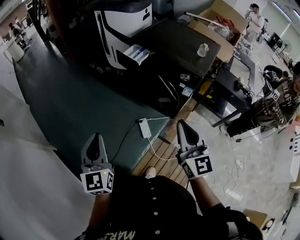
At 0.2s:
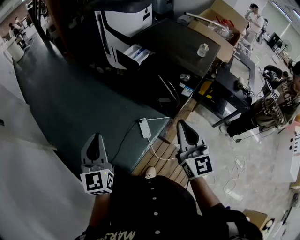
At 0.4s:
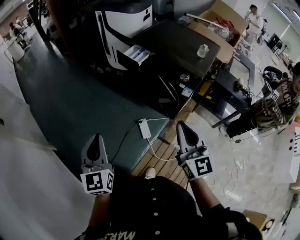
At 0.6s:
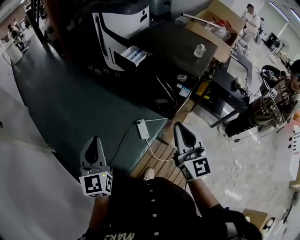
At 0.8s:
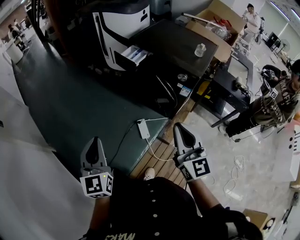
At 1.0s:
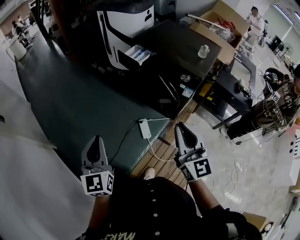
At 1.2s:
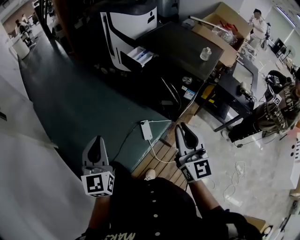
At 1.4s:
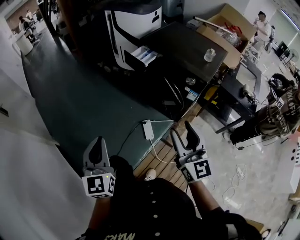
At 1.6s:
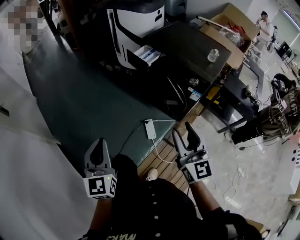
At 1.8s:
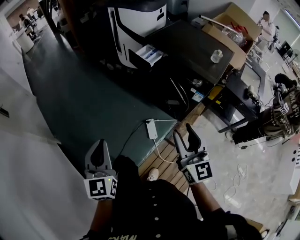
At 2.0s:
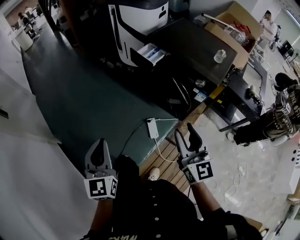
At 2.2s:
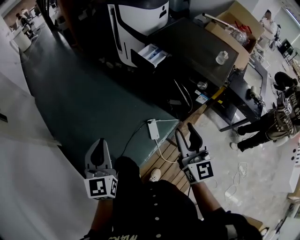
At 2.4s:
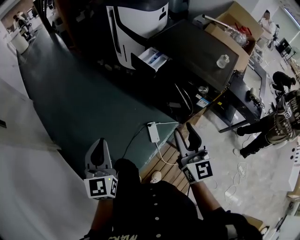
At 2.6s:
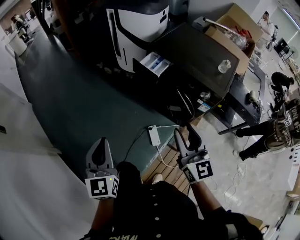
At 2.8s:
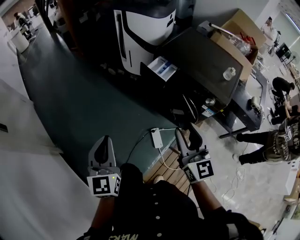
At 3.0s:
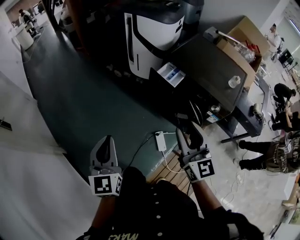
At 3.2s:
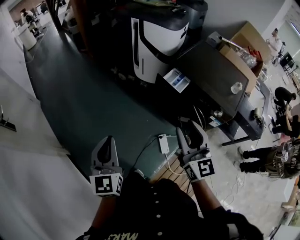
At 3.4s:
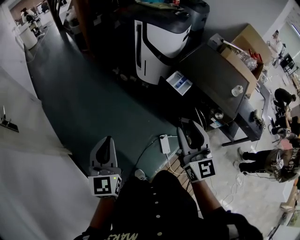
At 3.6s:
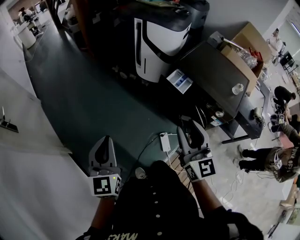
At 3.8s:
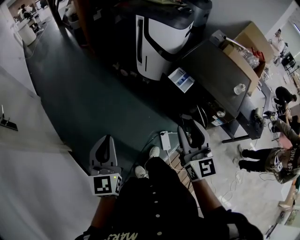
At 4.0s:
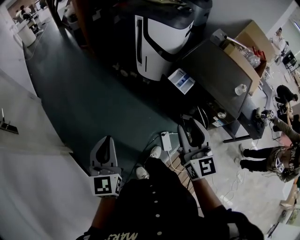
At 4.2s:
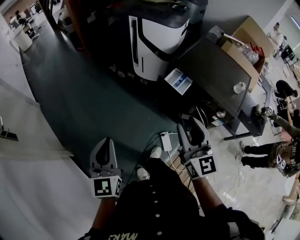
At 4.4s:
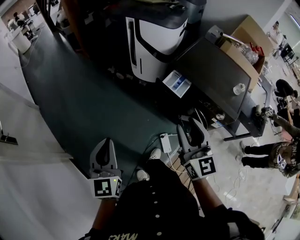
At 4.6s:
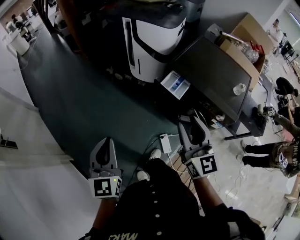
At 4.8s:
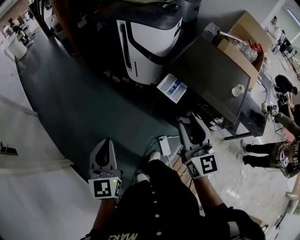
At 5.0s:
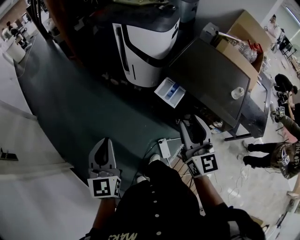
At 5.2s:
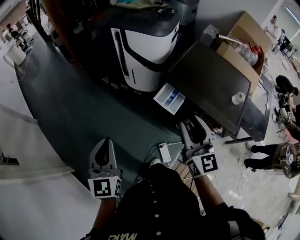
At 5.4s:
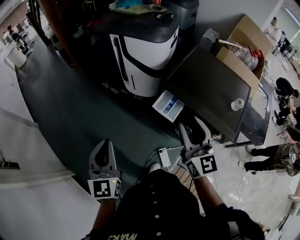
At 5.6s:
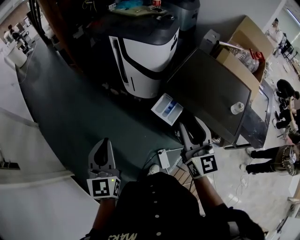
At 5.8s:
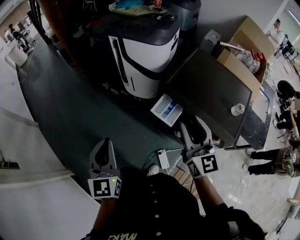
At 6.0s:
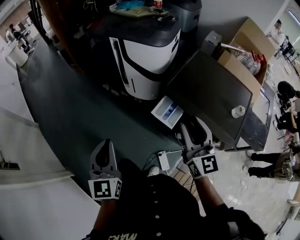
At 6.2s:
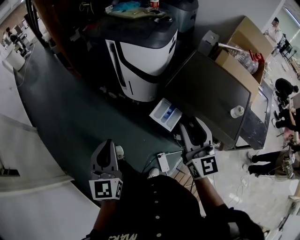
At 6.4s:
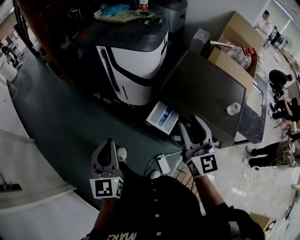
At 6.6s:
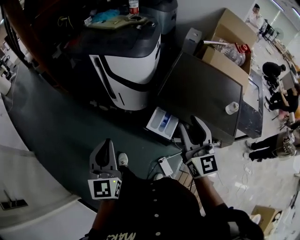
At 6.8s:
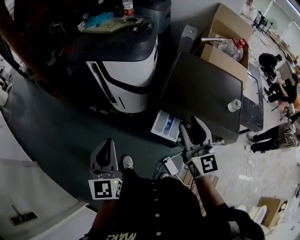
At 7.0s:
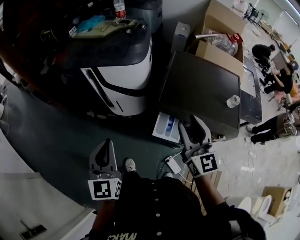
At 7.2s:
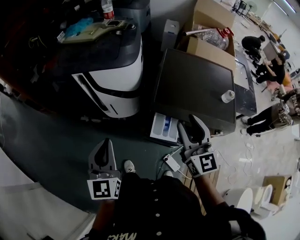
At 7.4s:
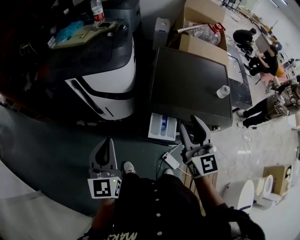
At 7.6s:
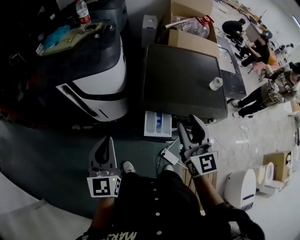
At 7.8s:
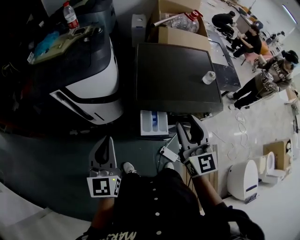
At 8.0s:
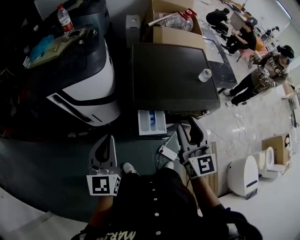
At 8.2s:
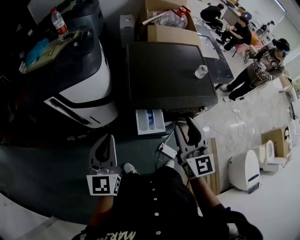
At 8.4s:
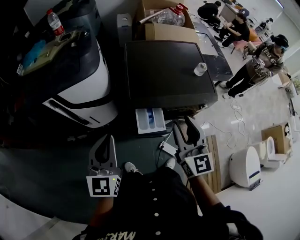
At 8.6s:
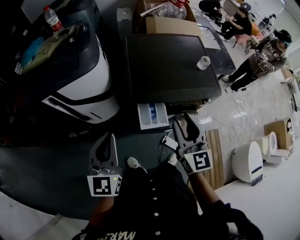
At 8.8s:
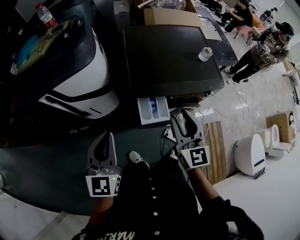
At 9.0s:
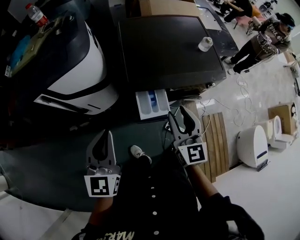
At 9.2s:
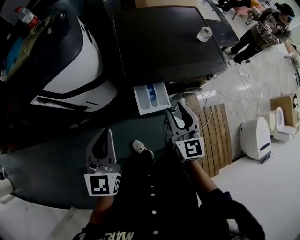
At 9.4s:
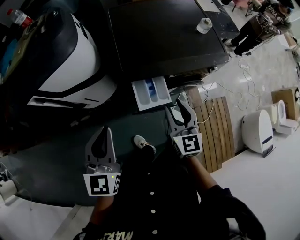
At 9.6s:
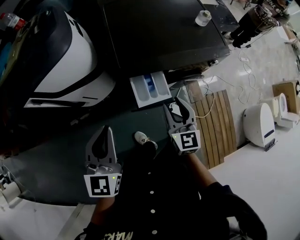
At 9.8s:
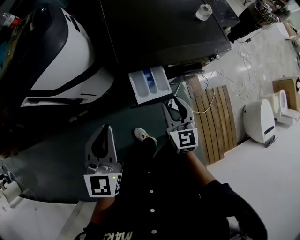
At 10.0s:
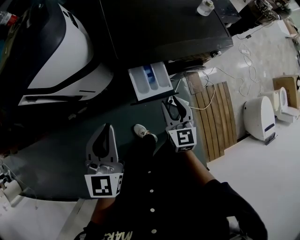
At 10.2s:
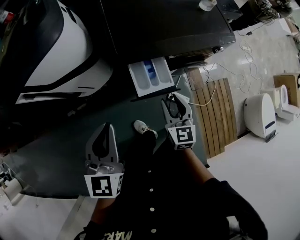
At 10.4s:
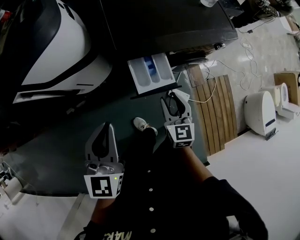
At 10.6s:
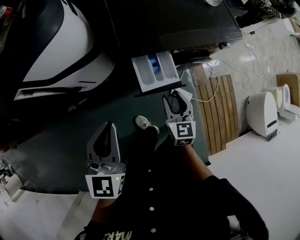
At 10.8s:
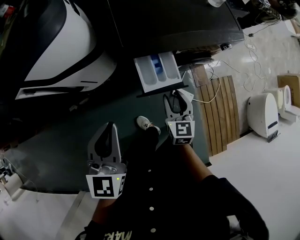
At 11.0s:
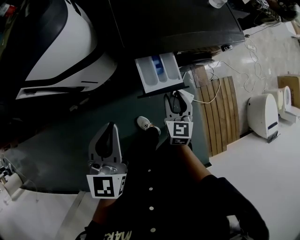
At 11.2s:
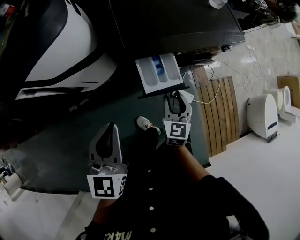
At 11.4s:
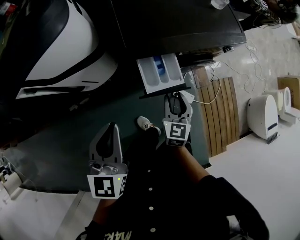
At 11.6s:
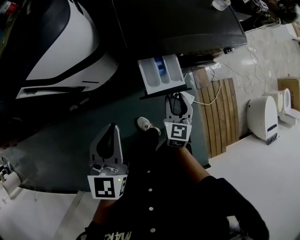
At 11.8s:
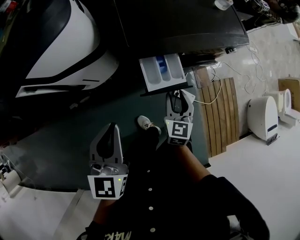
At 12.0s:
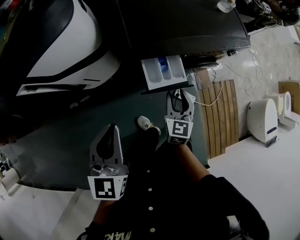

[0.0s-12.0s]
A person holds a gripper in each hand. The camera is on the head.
0.0s to 1.6s: The right gripper opens up.
1.6s to 3.0s: Both grippers move forward and to the left, roughly 20 cm.
3.0s to 4.4s: The grippers both shift forward by roughly 10 cm.
4.4s to 6.0s: The grippers both shift forward and to the right by approximately 20 cm.
6.0s to 7.6s: The left gripper ends up roughly 25 cm from where it was, and swivels approximately 40 degrees. The right gripper moves approximately 5 cm, and swivels about 30 degrees.
7.6s to 9.0s: The right gripper moves downward, roughly 10 cm.
9.0s to 10.4s: The left gripper goes approximately 5 cm downward. Meanwhile the right gripper moves downward, roughly 20 cm, and swivels roughly 20 degrees.
10.4s to 12.0s: The grippers make only small movements.

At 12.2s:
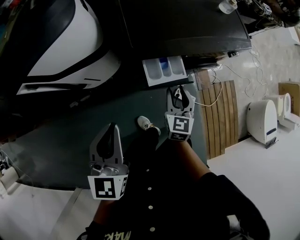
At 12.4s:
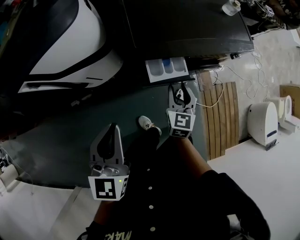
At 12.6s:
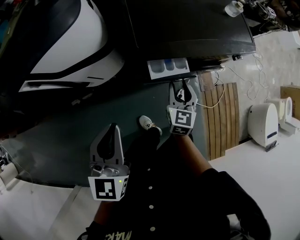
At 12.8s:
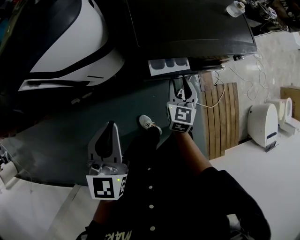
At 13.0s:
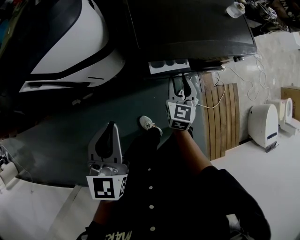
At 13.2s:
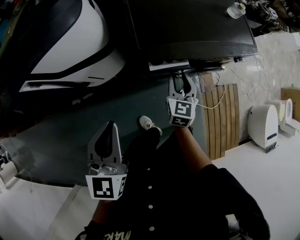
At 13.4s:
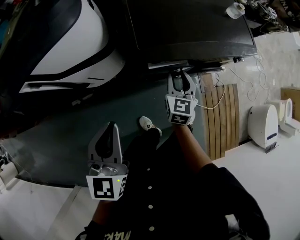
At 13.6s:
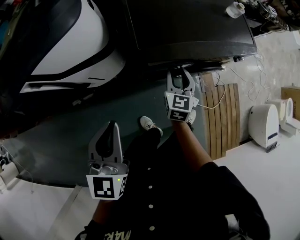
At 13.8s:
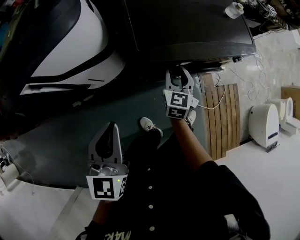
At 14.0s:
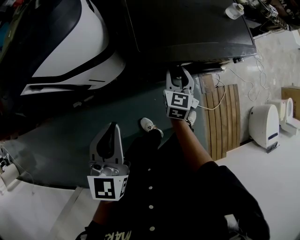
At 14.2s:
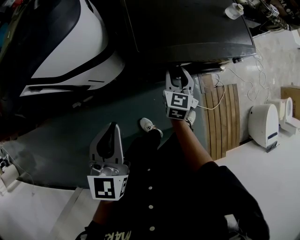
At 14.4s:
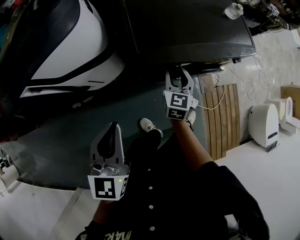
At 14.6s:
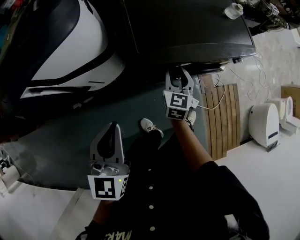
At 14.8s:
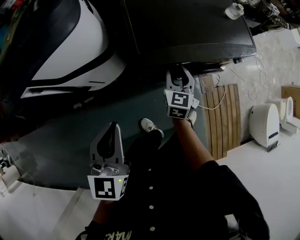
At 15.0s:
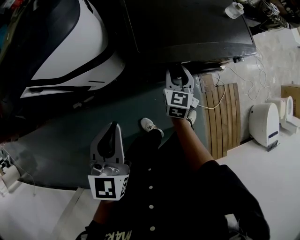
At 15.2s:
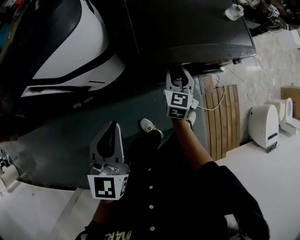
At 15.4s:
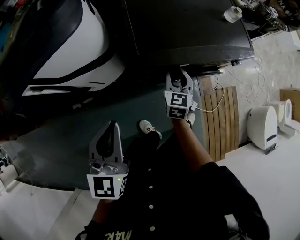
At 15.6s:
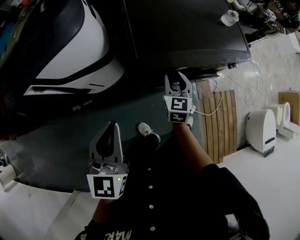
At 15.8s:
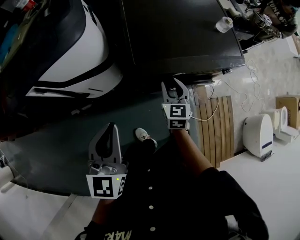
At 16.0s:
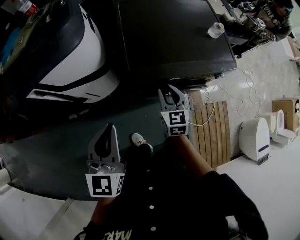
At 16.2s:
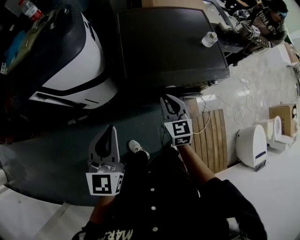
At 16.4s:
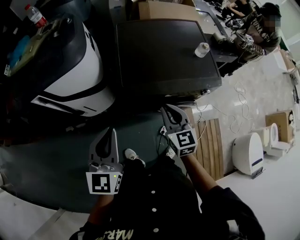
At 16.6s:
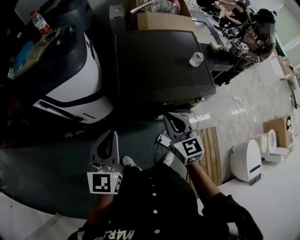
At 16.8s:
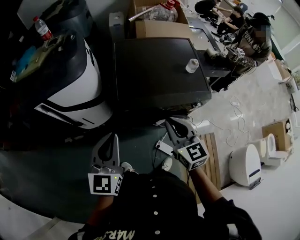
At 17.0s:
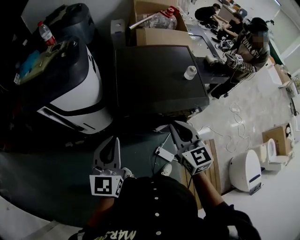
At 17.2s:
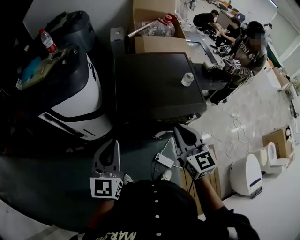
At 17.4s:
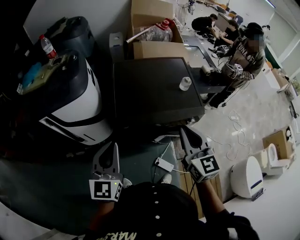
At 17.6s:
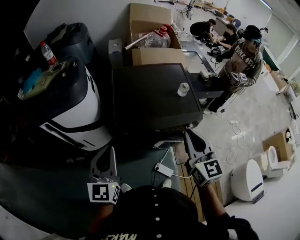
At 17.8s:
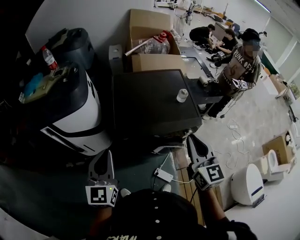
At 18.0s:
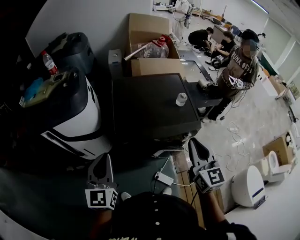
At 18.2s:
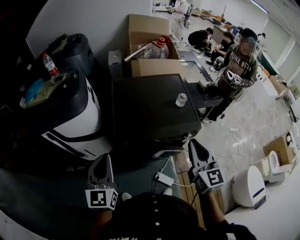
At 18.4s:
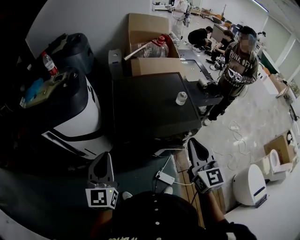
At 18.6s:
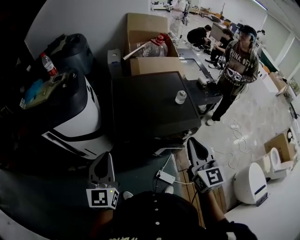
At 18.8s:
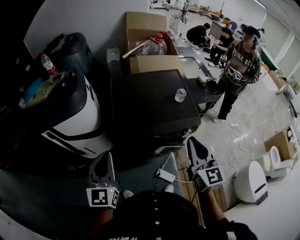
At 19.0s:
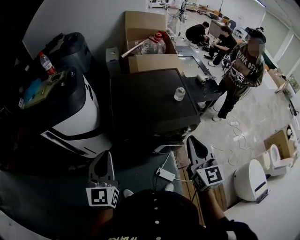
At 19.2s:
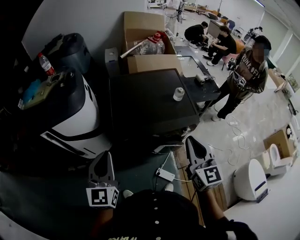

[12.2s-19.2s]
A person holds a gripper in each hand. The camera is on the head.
12.2s to 13.6s: The right gripper heads forward, covering about 10 cm.
13.6s to 15.0s: There are only small adjustments of the grippers.
15.0s to 16.4s: The right gripper moves upward and backward, roughly 15 cm, turns by approximately 30 degrees, and closes its fingers, while the left gripper moves upward and to the right, some 10 cm.
16.4s to 17.8s: The left gripper is displaced upward by roughly 5 cm. The right gripper heads upward and to the right, covering roughly 25 cm.
17.8s to 19.2s: The grippers make only small movements.

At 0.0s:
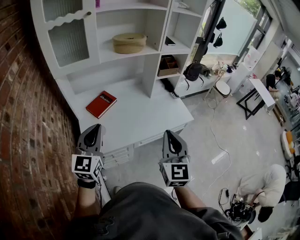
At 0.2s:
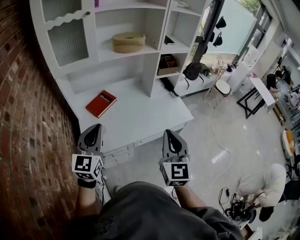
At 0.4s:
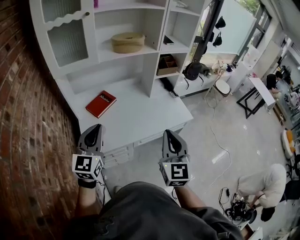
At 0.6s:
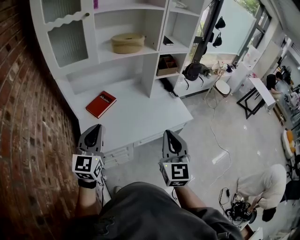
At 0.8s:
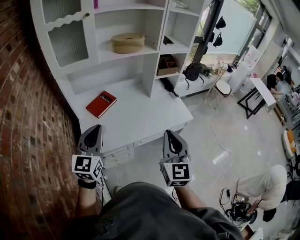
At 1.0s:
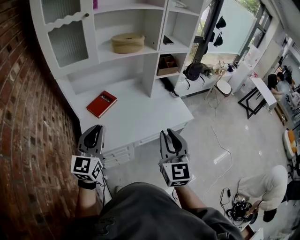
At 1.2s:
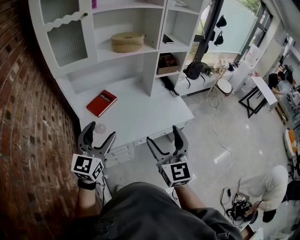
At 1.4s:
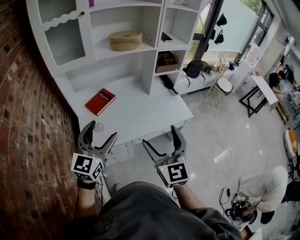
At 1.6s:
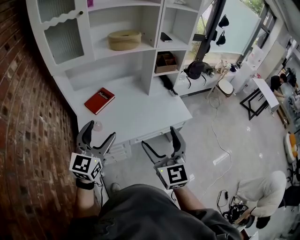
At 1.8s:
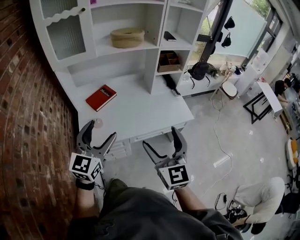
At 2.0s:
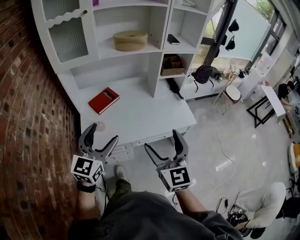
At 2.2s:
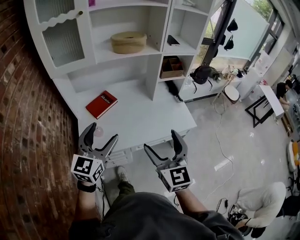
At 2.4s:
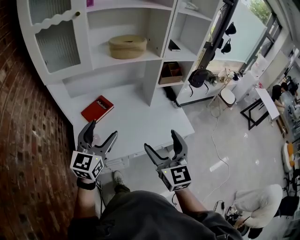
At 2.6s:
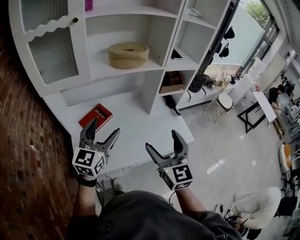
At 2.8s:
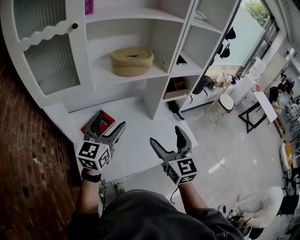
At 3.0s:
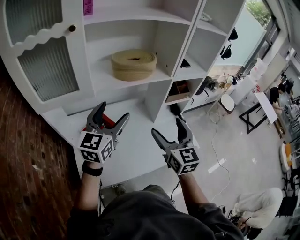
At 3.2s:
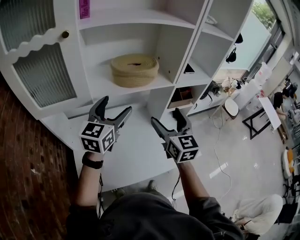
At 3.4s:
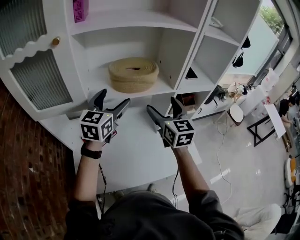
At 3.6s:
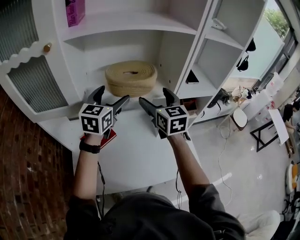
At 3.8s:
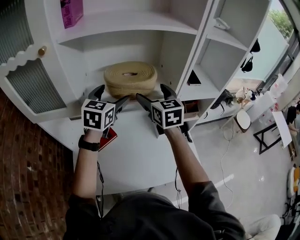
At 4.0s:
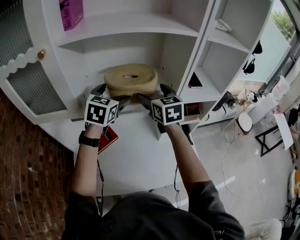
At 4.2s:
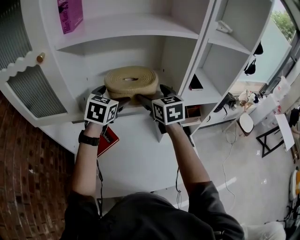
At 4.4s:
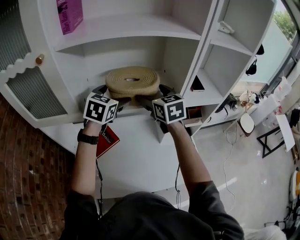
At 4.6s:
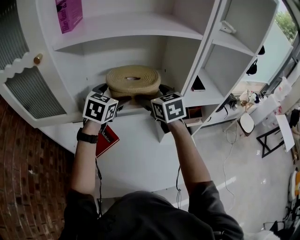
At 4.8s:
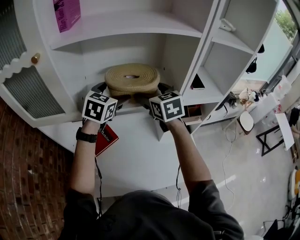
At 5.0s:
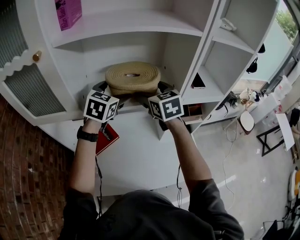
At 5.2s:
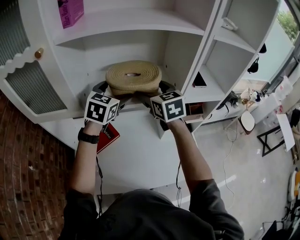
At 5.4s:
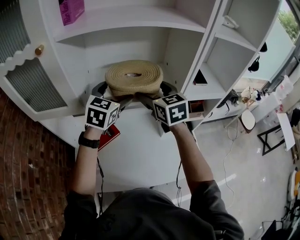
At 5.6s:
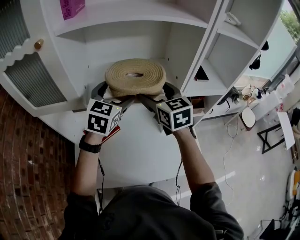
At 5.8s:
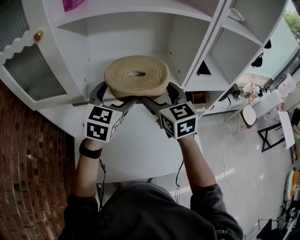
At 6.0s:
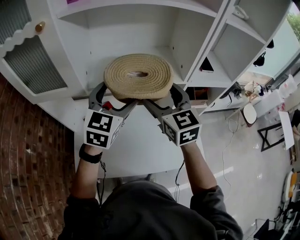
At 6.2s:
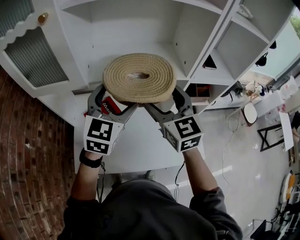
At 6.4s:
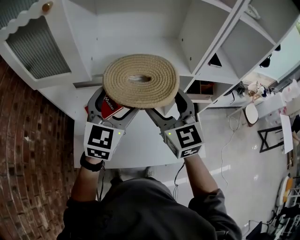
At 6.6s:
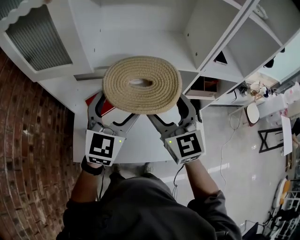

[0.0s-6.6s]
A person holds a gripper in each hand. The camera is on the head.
0.0s to 1.6s: The left gripper heads to the right, covering approximately 10 cm, and opens its fingers, while the right gripper opens its fingers.
1.6s to 3.2s: The two grippers travel together, forward, about 40 cm.
3.2s to 5.0s: The two grippers go roughly 20 cm forward. The right gripper changes its angle by roughly 20 degrees, while the left gripper changes its angle by some 30 degrees.
5.0s to 6.6s: Both grippers move backward, roughly 20 cm.
